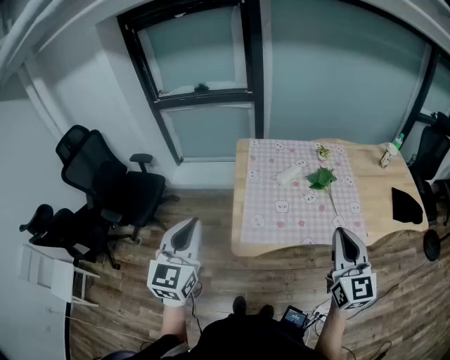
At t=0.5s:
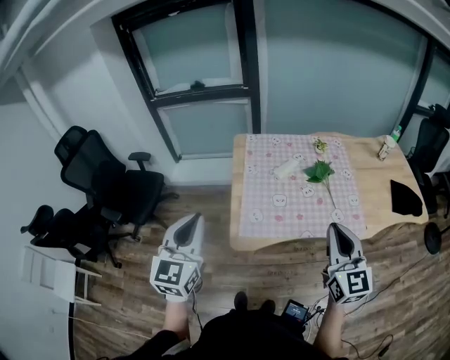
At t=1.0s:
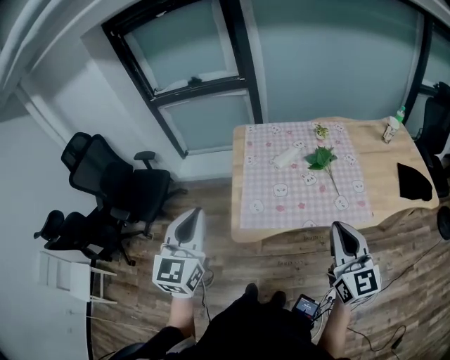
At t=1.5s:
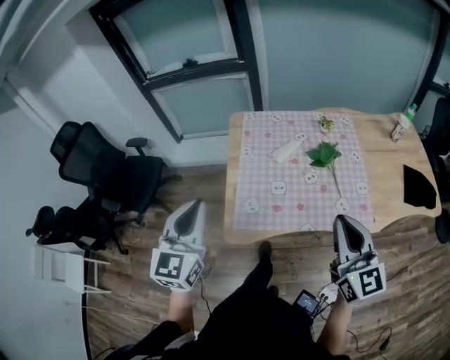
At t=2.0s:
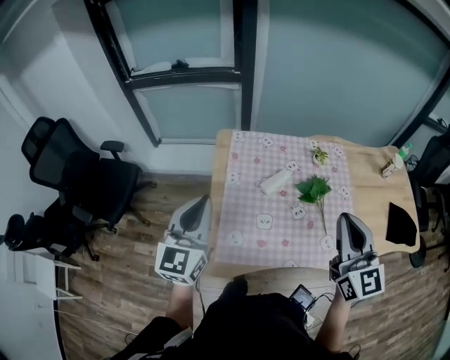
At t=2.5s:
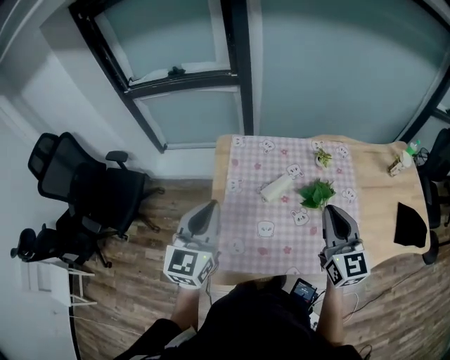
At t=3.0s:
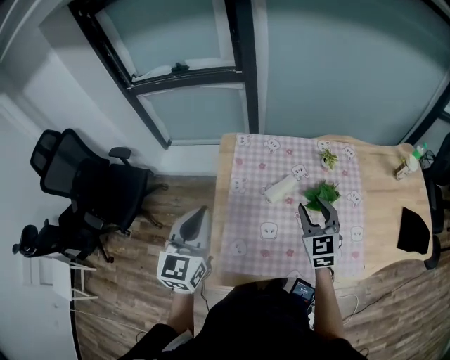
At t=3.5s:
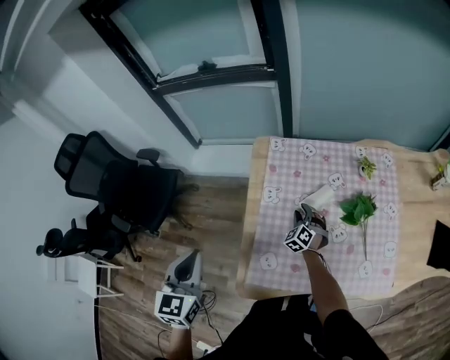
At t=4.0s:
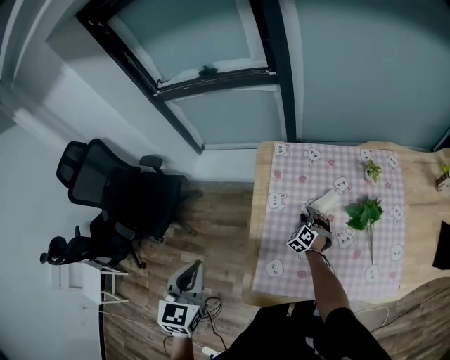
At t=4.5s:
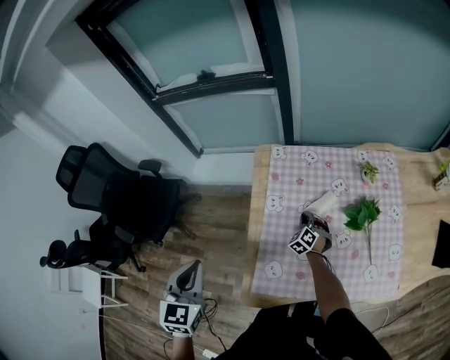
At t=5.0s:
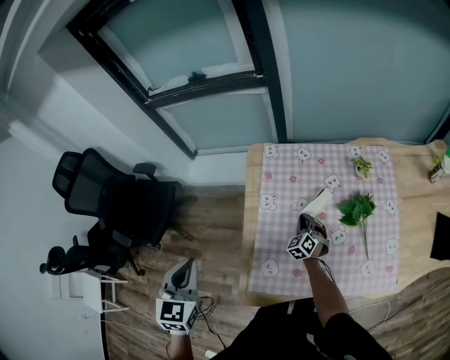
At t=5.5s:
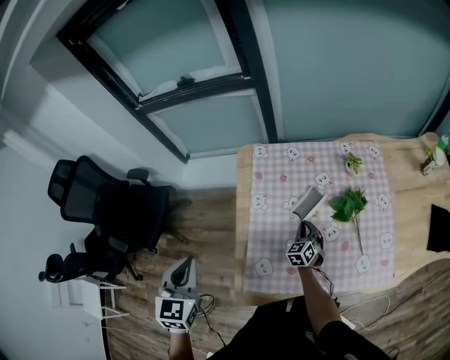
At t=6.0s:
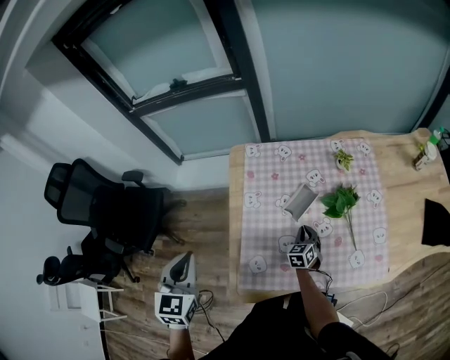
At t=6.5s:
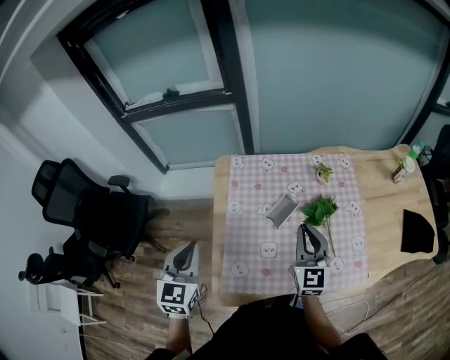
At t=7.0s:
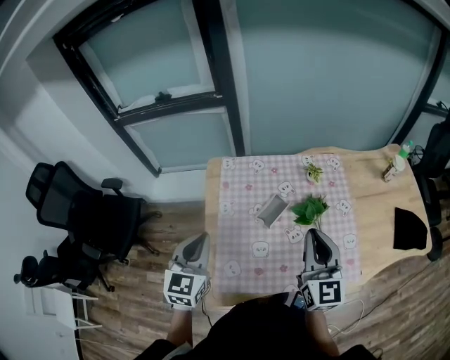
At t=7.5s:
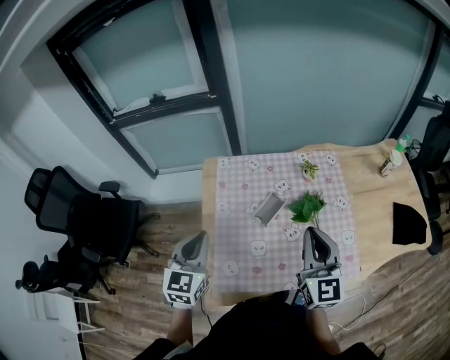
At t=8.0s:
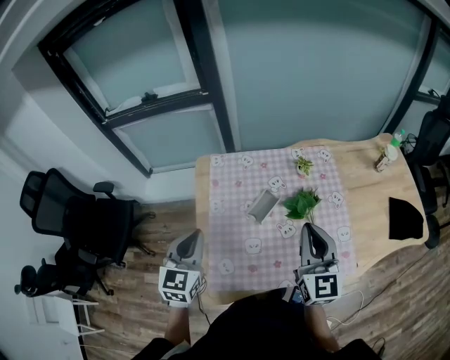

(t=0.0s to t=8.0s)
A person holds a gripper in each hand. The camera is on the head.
t=0.0s - t=2.0s: Both grippers travel together forward, about 25 cm.
t=2.0s - t=4.0s: The left gripper moves to the left and downward, roughly 15 cm, and turns by roughly 30 degrees, while the right gripper goes approximately 50 cm downward and forward, tips its fingers downward by about 40 degrees, and opens its fingers.
t=4.0s - t=6.0s: The left gripper moves some 5 cm. The right gripper travels to the right and backward by about 15 cm, changes its angle by about 40 degrees, and closes.
t=6.0s - t=8.0s: The right gripper goes roughly 40 cm upward, and tilts its fingers some 40 degrees upward, while the left gripper travels to the right and forward by approximately 15 cm.

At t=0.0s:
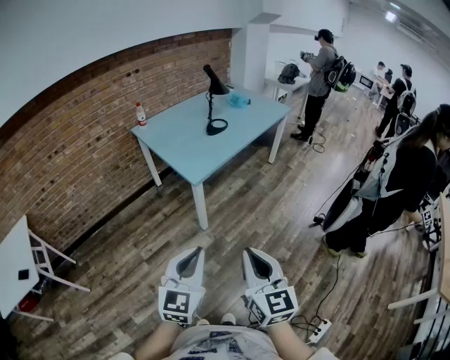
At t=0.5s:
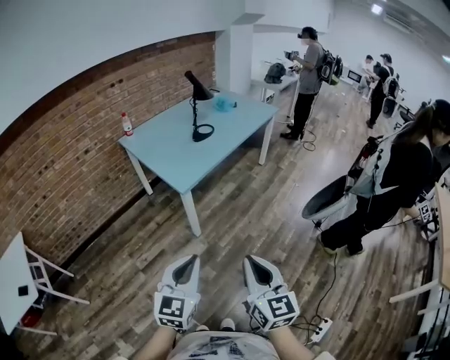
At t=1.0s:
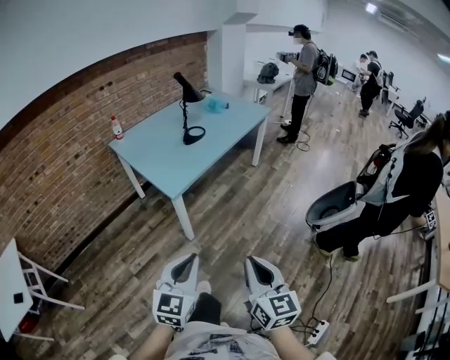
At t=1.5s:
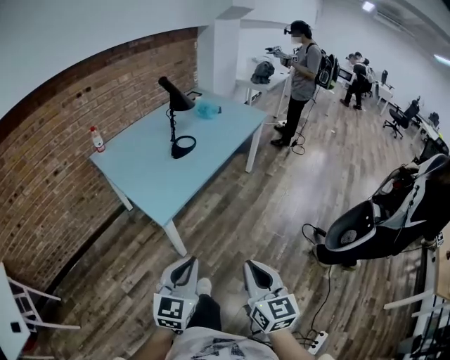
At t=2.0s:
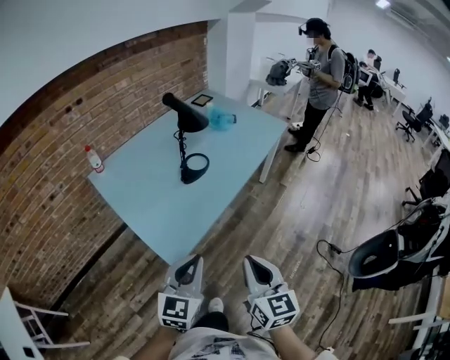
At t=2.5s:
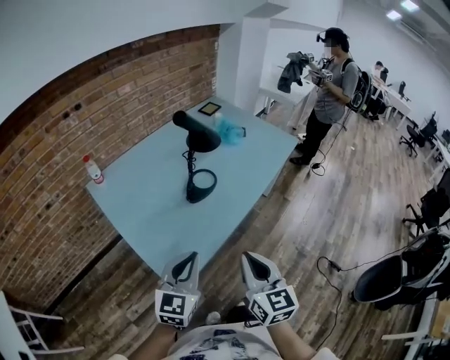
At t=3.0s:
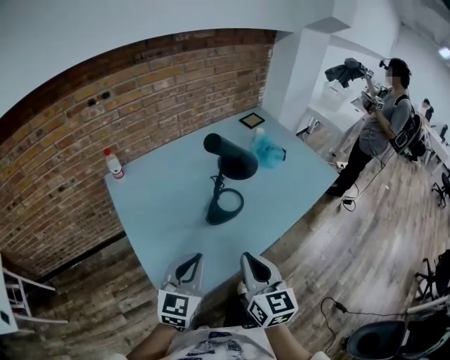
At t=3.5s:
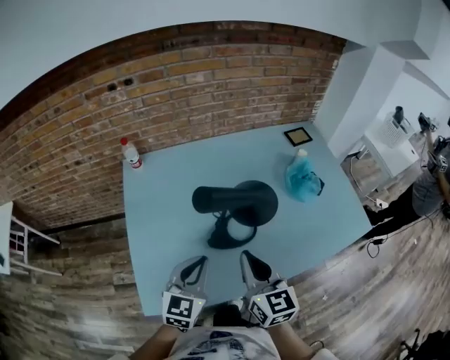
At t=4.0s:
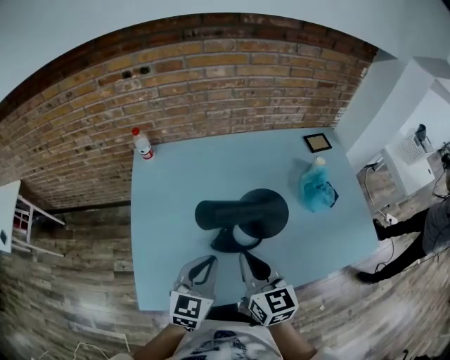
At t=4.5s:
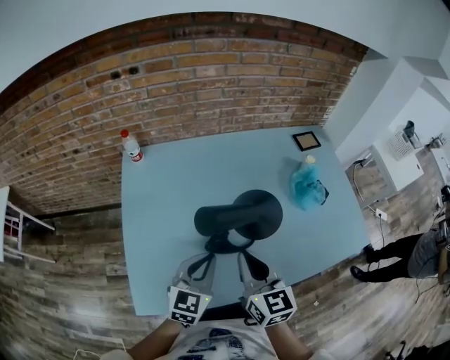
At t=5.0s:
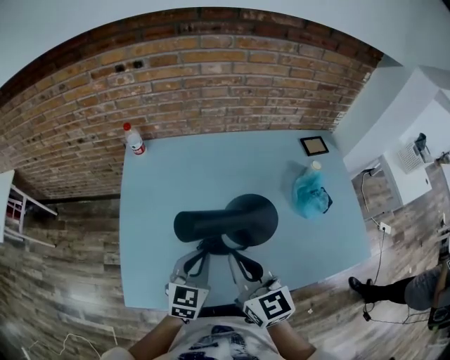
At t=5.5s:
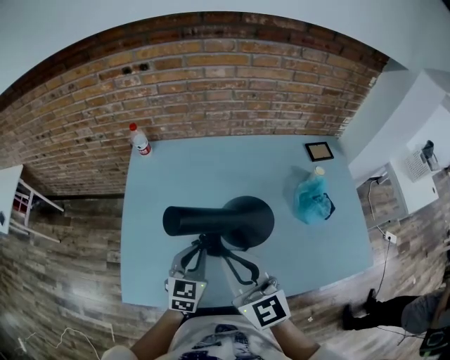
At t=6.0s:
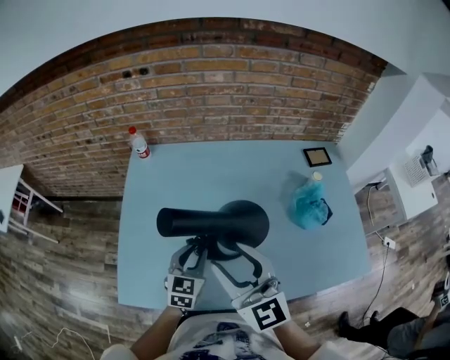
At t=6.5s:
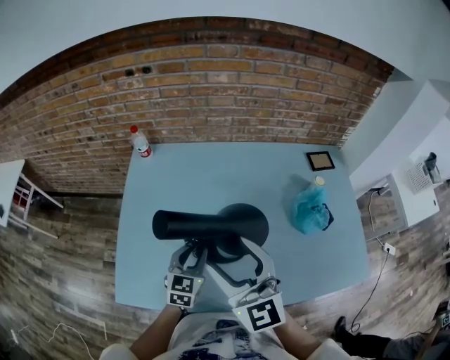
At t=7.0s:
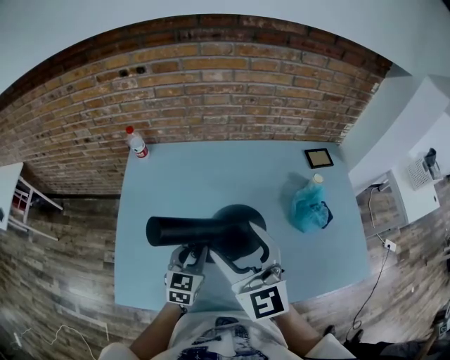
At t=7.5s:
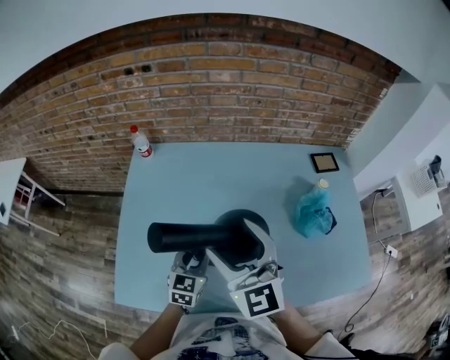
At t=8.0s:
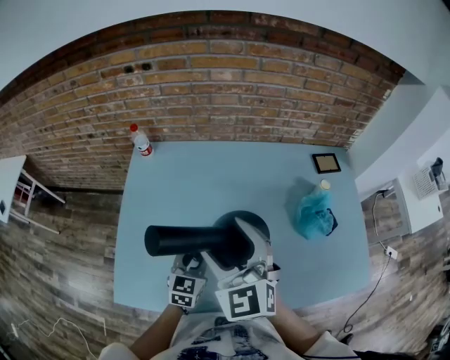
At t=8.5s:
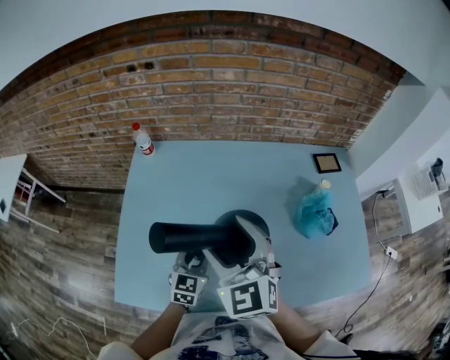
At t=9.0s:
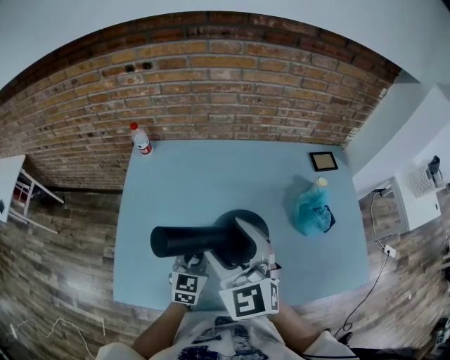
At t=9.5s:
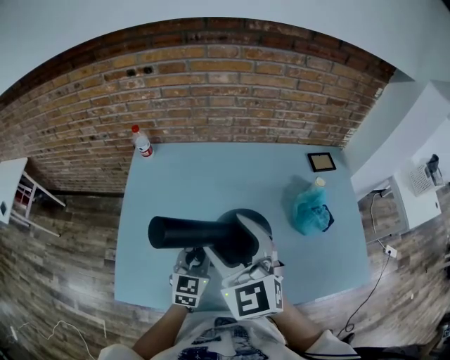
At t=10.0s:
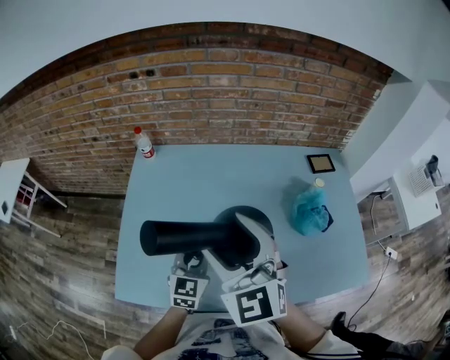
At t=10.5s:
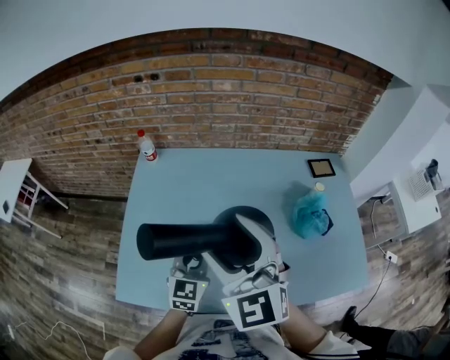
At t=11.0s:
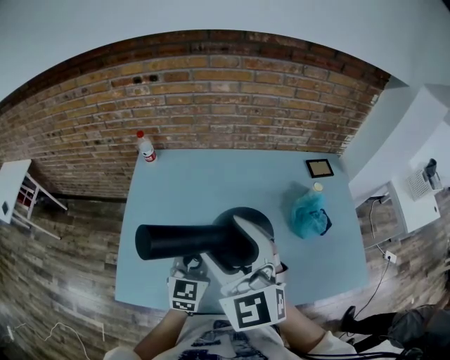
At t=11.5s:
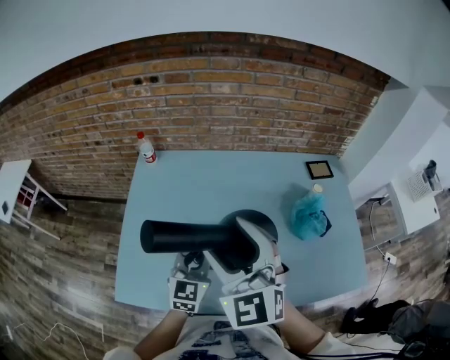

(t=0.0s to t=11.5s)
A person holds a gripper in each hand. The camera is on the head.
t=0.0s - t=2.0s: Both grippers are carried forward, about 50 cm.
t=2.0s - t=4.0s: The two grippers travel together, roughly 50 cm. The left gripper turns by some 40 degrees. Meanwhile the right gripper rotates about 50 degrees.
t=4.0s - t=6.0s: The right gripper is displaced upward by approximately 10 cm, turns by about 30 degrees, and opens up; the left gripper shifts some 10 cm downward and forward.
t=6.0s - t=7.5s: The right gripper shifts approximately 5 cm forward, and opens.
t=7.5s - t=9.5s: There are only small adjustments of the grippers.
t=9.5s - t=11.5s: The left gripper goes approximately 5 cm upward.

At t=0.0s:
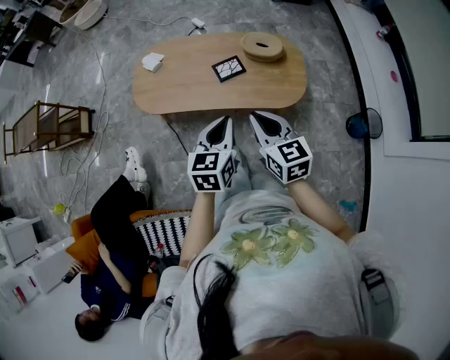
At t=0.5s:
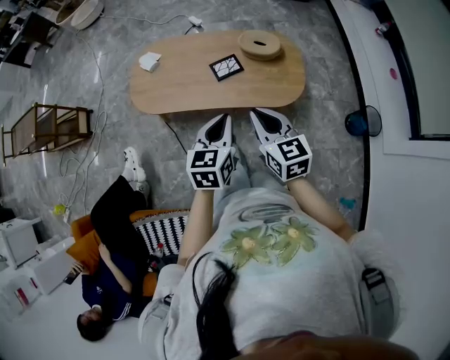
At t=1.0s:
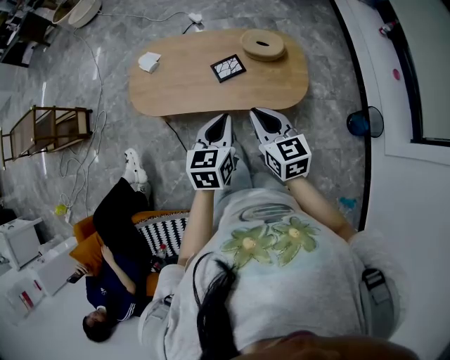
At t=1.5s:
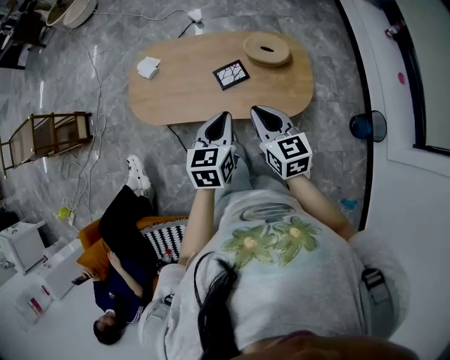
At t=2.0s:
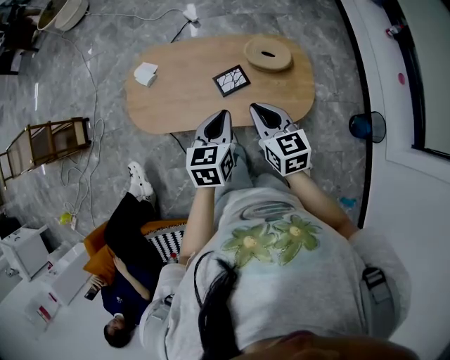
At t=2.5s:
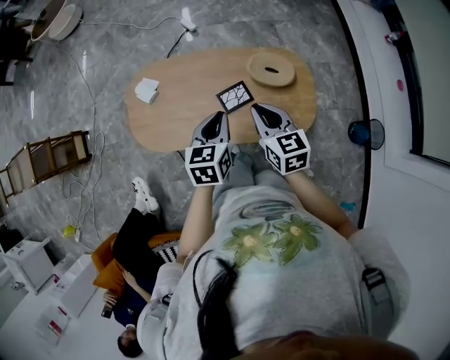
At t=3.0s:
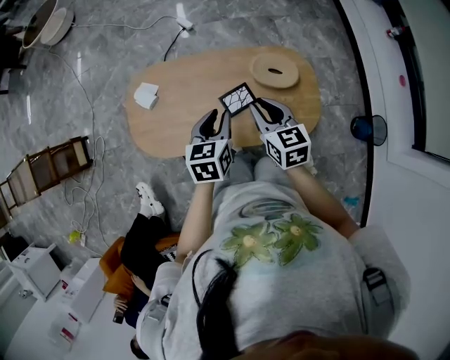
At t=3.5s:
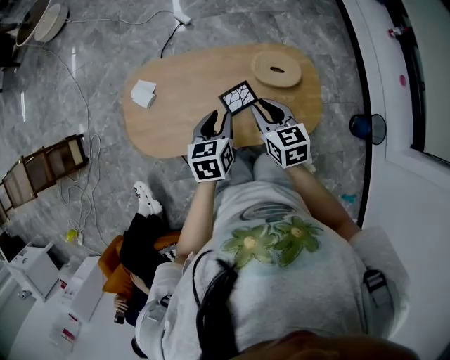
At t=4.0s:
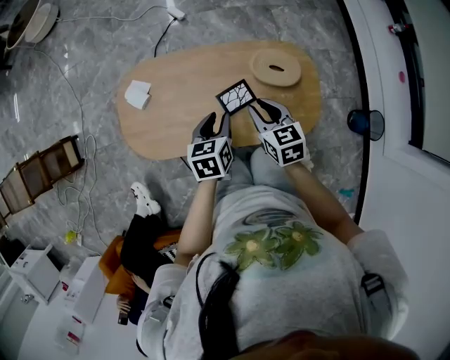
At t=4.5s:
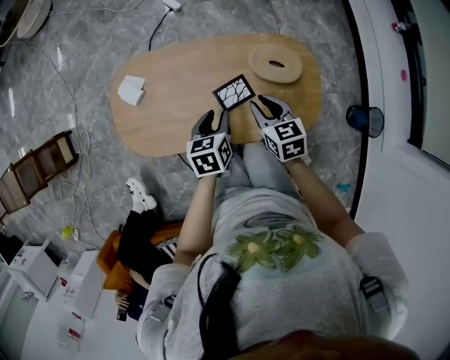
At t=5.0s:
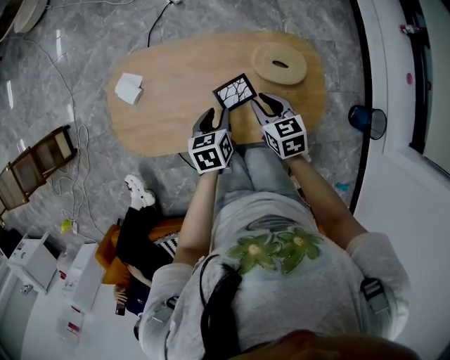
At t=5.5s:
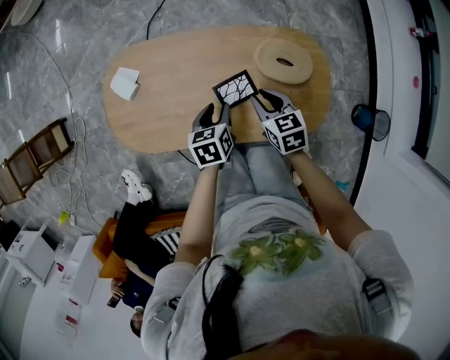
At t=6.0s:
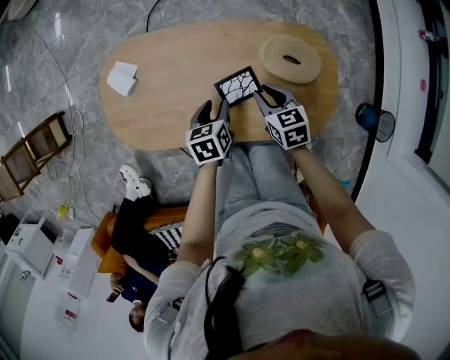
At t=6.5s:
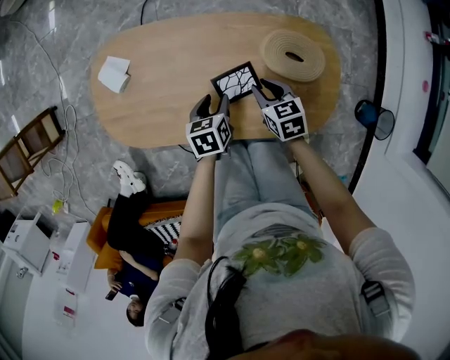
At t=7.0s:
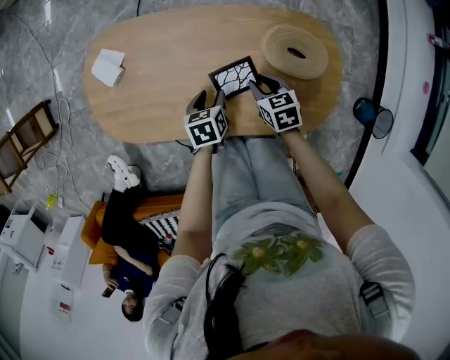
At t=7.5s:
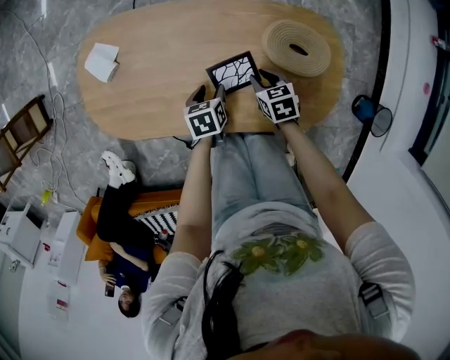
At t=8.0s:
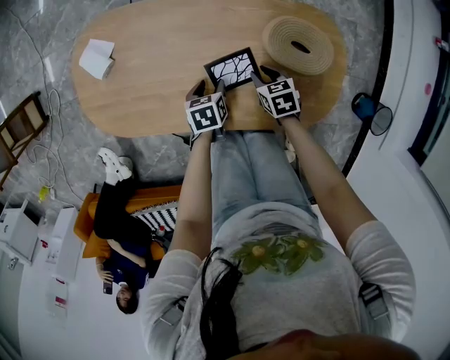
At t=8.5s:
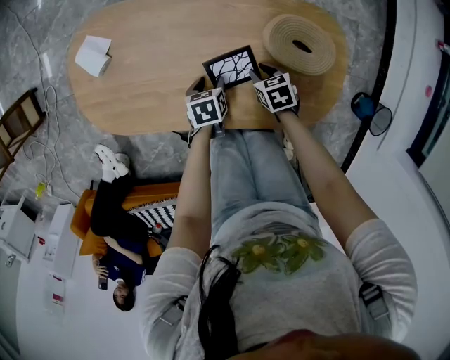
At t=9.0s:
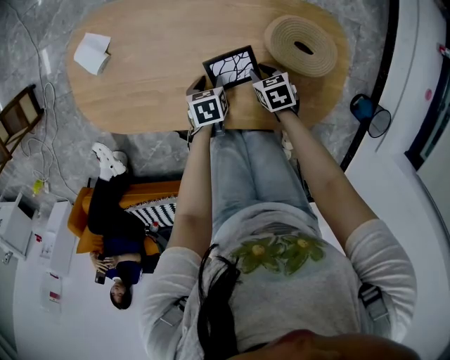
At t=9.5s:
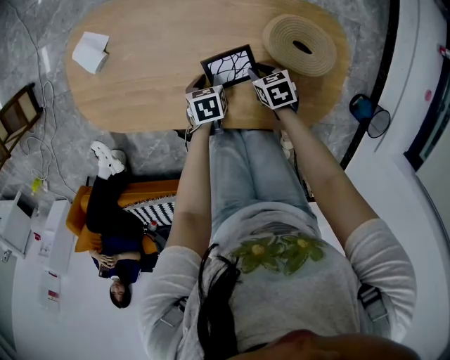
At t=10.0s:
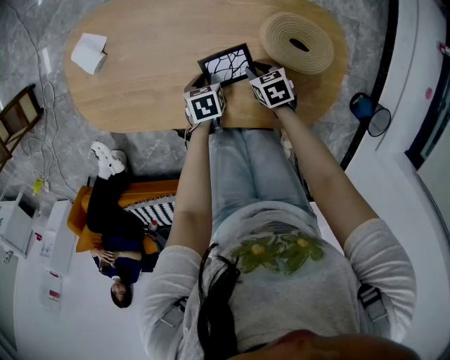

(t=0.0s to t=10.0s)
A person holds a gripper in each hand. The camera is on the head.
t=0.0s - t=2.0s: The grippers both shift forward by approximately 20 cm.
t=2.0s - t=4.0s: Both grippers travel together forward and downward, about 20 cm. The left gripper opens.
t=4.0s - t=6.0s: The two grippers go approximately 15 cm downward.
t=6.0s - t=8.0s: The two grippers go roughly 15 cm downward.
t=8.0s - t=10.0s: The left gripper closes.
